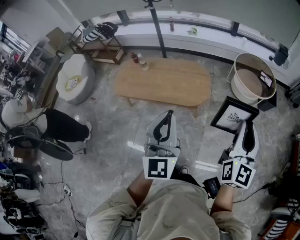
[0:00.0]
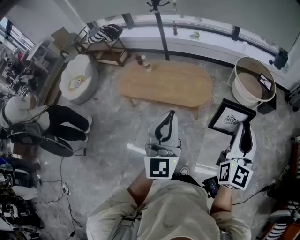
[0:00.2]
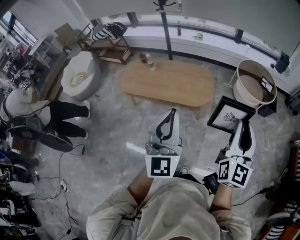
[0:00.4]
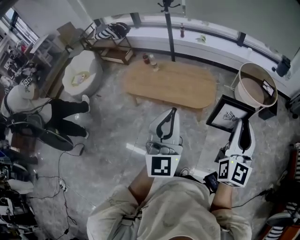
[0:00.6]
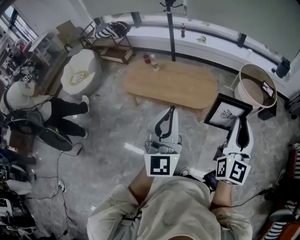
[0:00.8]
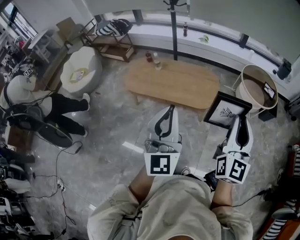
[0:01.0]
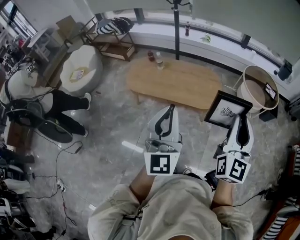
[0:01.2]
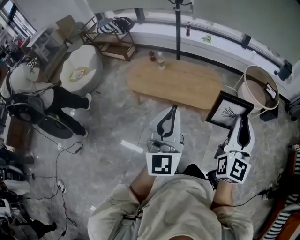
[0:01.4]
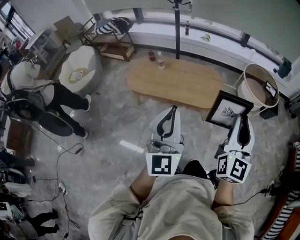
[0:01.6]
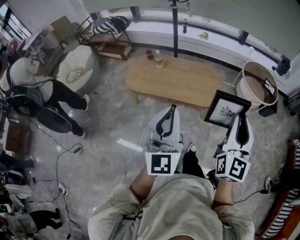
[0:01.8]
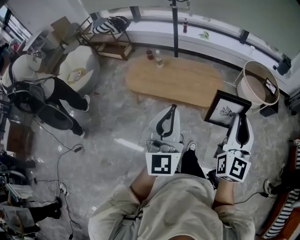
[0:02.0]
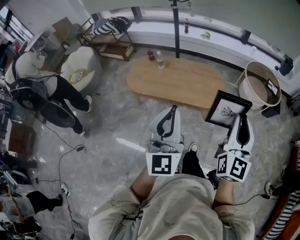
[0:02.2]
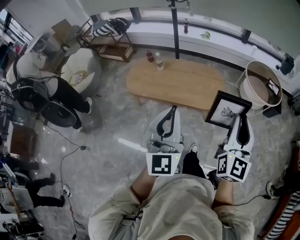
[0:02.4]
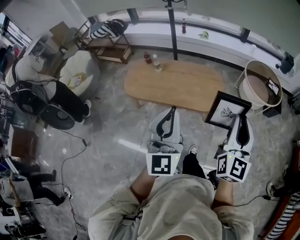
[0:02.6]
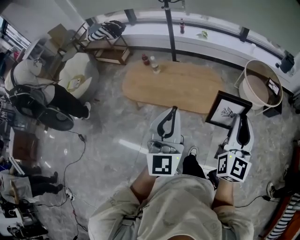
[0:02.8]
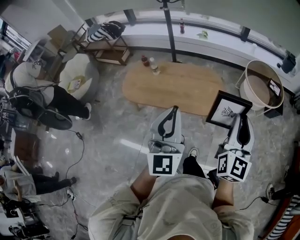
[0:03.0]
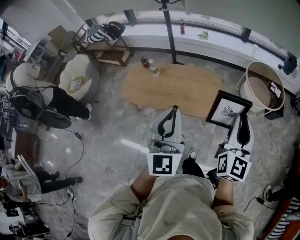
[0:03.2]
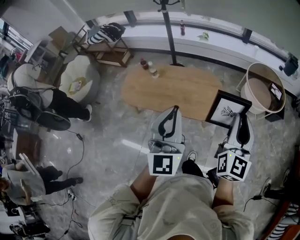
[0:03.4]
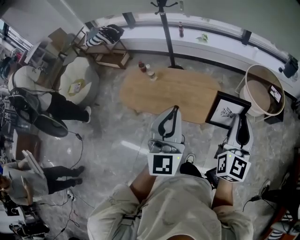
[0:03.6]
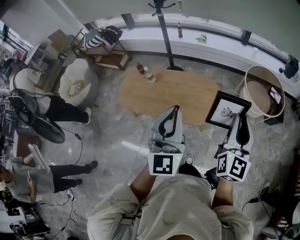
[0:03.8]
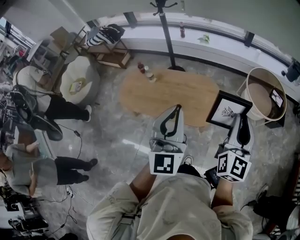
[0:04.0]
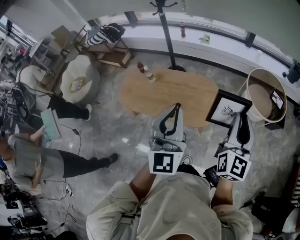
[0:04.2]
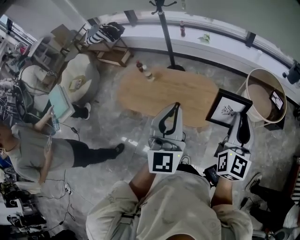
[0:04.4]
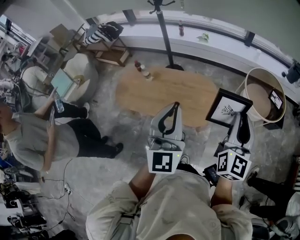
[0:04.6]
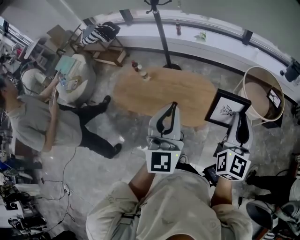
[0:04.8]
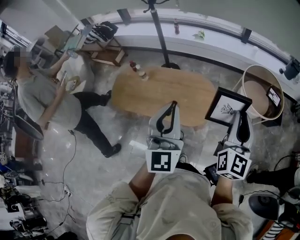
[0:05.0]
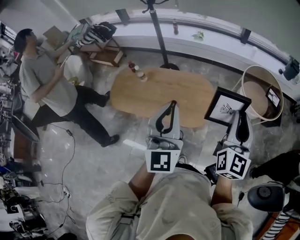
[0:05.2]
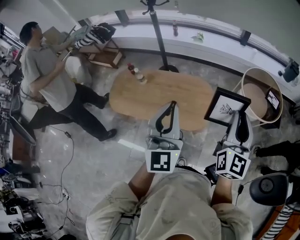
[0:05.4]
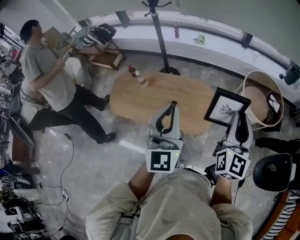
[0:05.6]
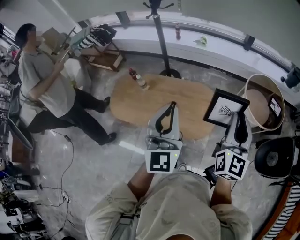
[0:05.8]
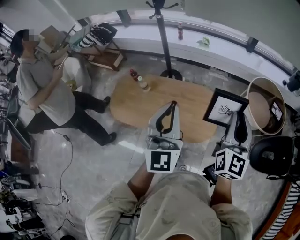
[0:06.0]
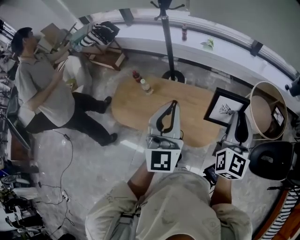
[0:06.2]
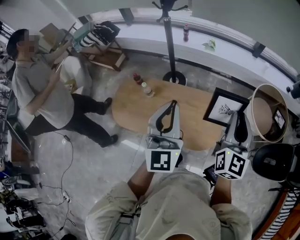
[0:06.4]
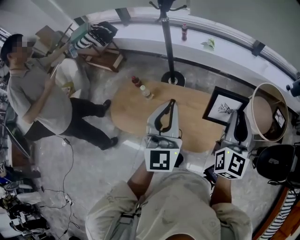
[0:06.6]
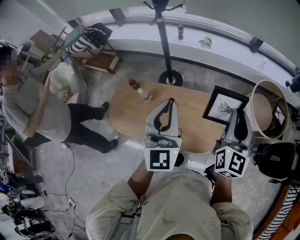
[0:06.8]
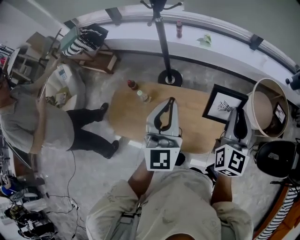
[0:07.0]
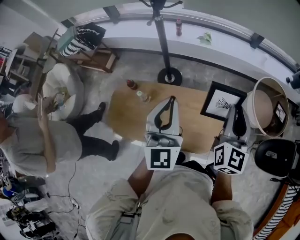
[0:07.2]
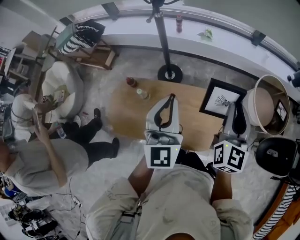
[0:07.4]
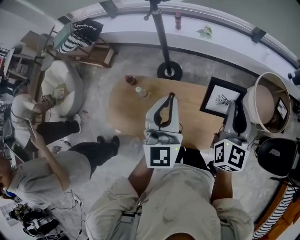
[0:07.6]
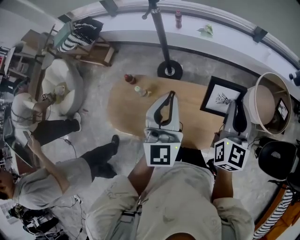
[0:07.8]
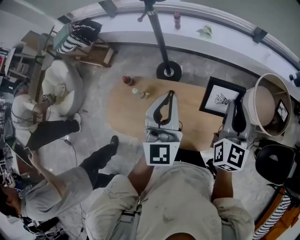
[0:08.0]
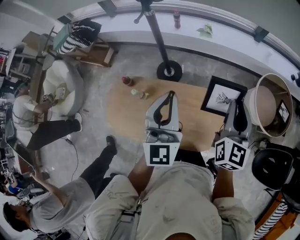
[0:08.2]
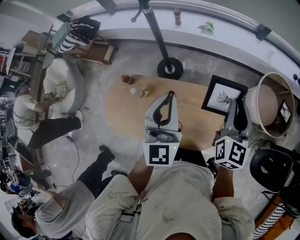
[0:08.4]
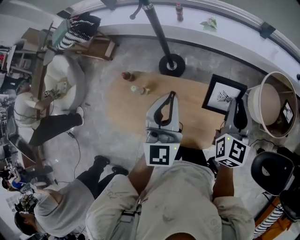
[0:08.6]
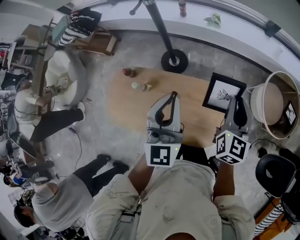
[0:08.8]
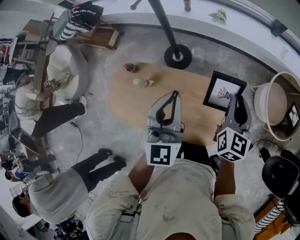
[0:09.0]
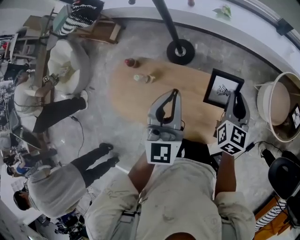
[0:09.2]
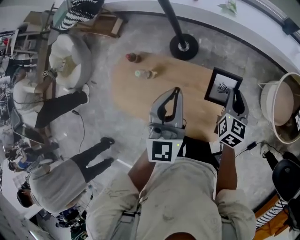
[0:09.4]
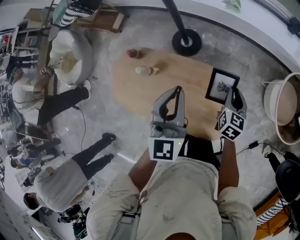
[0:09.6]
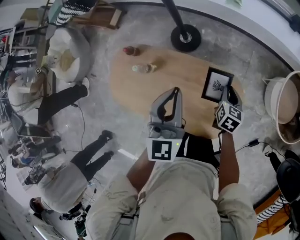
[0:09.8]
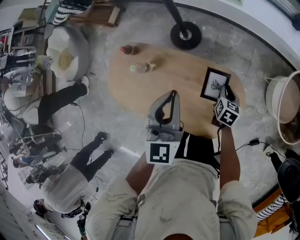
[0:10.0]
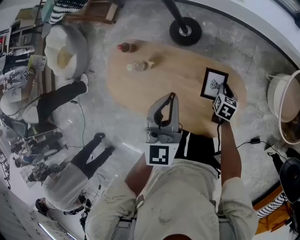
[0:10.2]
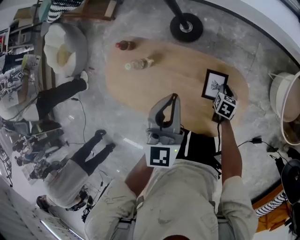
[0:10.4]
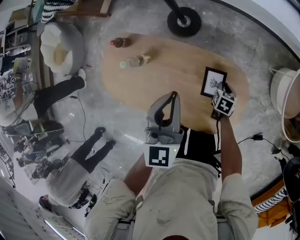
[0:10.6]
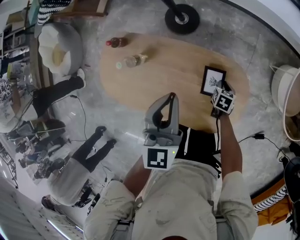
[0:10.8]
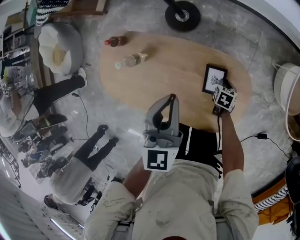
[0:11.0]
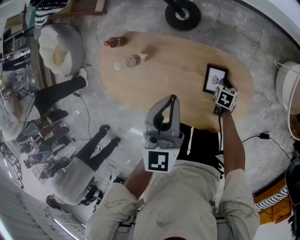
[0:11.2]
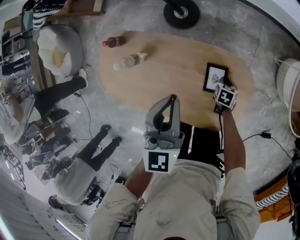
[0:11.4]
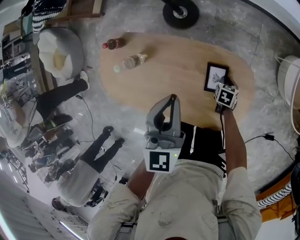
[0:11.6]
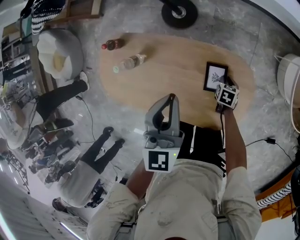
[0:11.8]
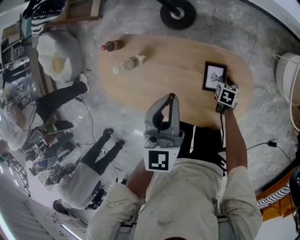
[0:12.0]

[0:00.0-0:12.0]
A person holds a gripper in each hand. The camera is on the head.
0:00.0 to 0:01.6: The grippers both shift to the left by approximately 15 cm.
0:01.6 to 0:03.0: The right gripper is displaced forward by about 10 cm. Meanwhile the left gripper goes roughly 15 cm forward and to the right.
0:03.0 to 0:04.4: Both grippers move forward and to the right, roughly 15 cm.
0:04.4 to 0:06.0: The grippers both shift forward by about 15 cm.
0:06.0 to 0:07.6: The grippers both shift forward and to the left by some 20 cm.
0:07.6 to 0:09.0: The right gripper shifts about 15 cm downward and forward, while the left gripper travels forward and downward by about 10 cm.
0:09.0 to 0:10.4: The right gripper shifts about 40 cm downward, and tips its fingers downward by some 40 degrees; the left gripper goes some 15 cm downward.
0:10.4 to 0:12.0: The right gripper moves downward, about 10 cm.

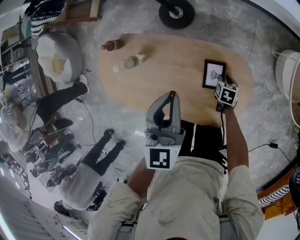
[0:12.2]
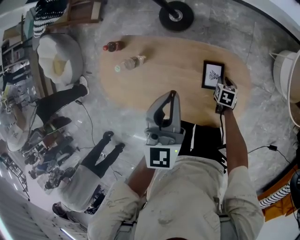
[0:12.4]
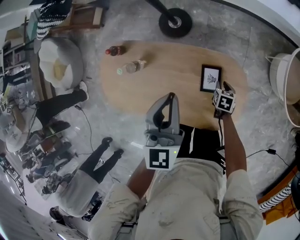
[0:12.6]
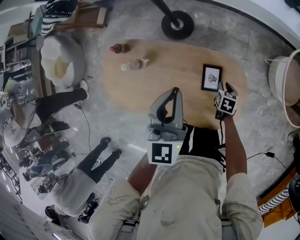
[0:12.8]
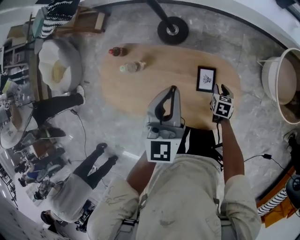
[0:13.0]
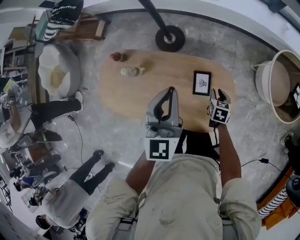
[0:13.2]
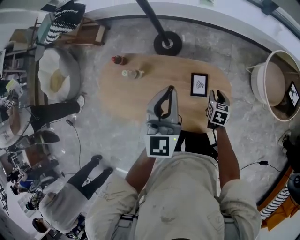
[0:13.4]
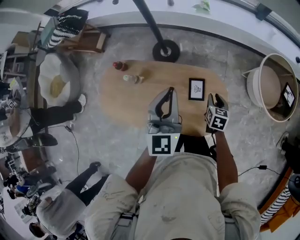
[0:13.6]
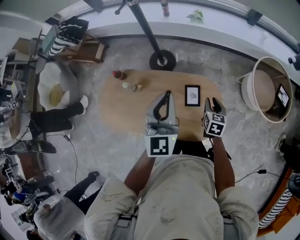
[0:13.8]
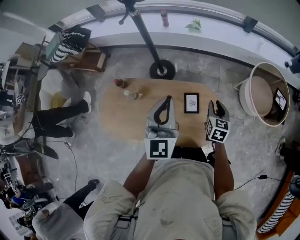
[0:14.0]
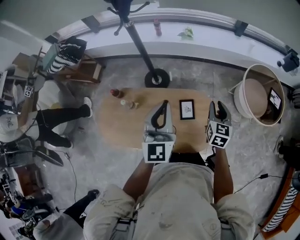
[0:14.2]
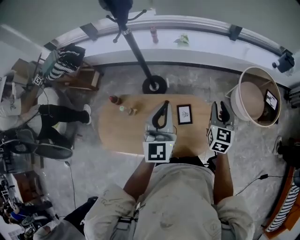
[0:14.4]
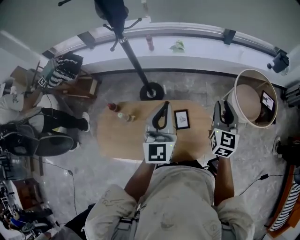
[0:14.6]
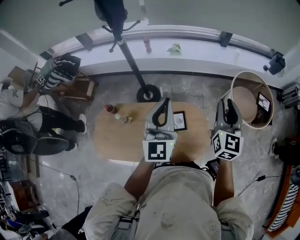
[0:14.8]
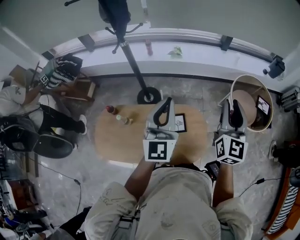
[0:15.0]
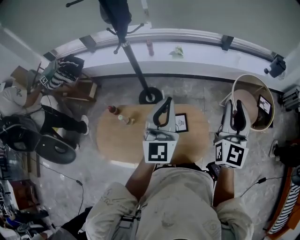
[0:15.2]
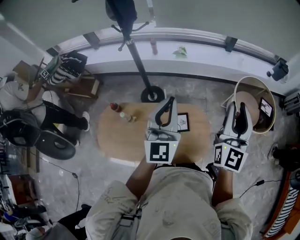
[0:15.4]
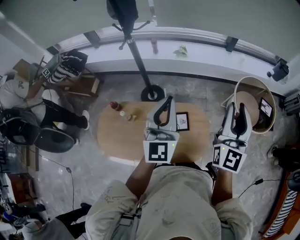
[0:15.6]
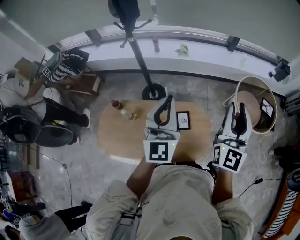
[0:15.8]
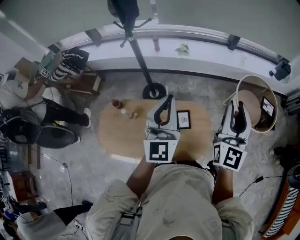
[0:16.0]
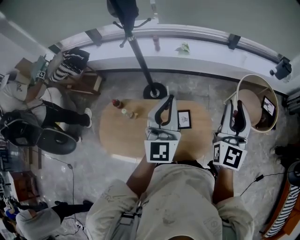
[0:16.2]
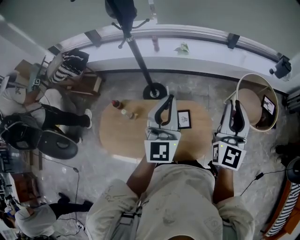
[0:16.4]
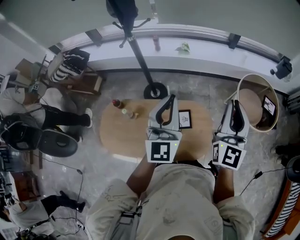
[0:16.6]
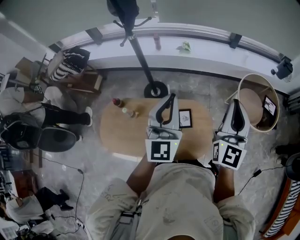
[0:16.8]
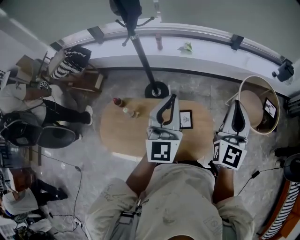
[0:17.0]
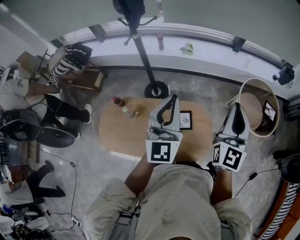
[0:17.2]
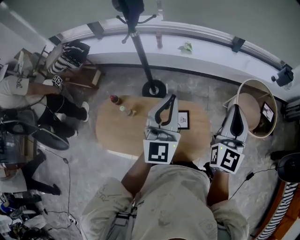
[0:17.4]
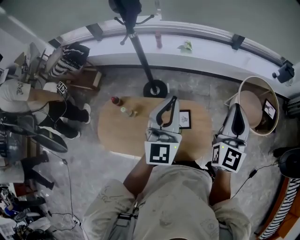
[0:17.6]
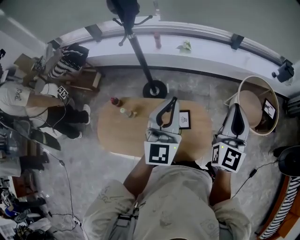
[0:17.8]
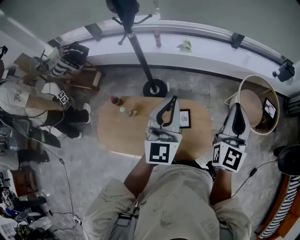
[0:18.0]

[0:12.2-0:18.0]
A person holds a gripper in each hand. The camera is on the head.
0:12.2 to 0:13.6: The left gripper shifts roughly 15 cm upward and backward. The right gripper is displaced upward by approximately 25 cm, and changes its angle by about 20 degrees.
0:13.6 to 0:15.0: The right gripper is displaced upward by some 40 cm, and angles its fingers upward, by about 50 degrees, while the left gripper is displaced upward by roughly 15 cm.
0:15.0 to 0:16.6: The right gripper ends up some 5 cm from where it was.
0:16.6 to 0:18.0: The grippers move only a little.

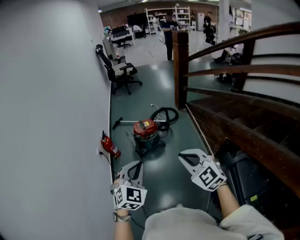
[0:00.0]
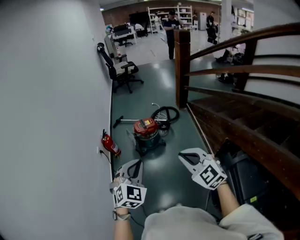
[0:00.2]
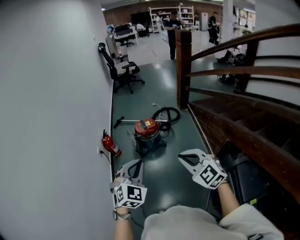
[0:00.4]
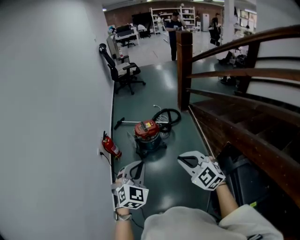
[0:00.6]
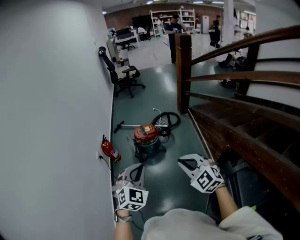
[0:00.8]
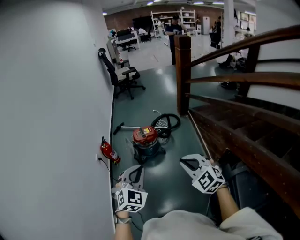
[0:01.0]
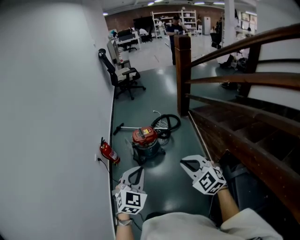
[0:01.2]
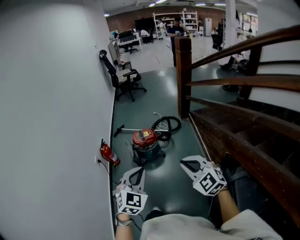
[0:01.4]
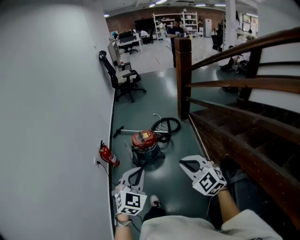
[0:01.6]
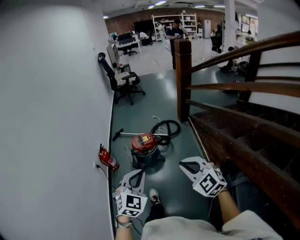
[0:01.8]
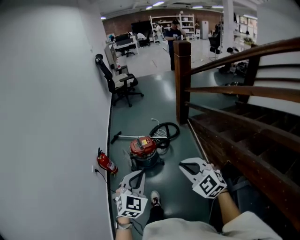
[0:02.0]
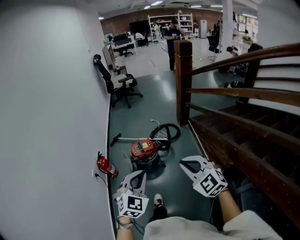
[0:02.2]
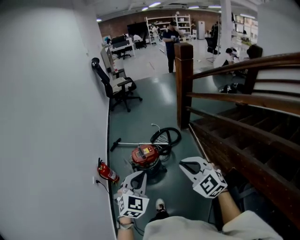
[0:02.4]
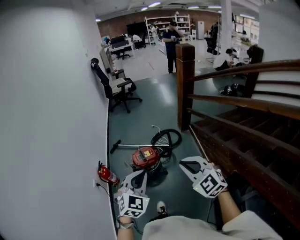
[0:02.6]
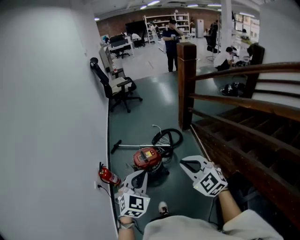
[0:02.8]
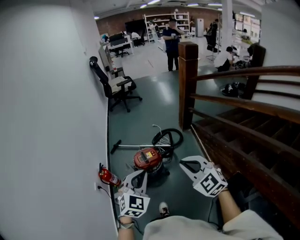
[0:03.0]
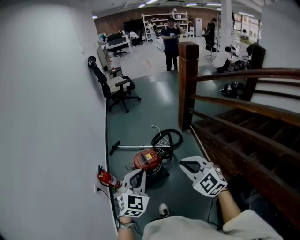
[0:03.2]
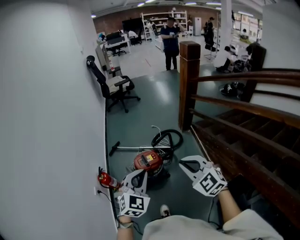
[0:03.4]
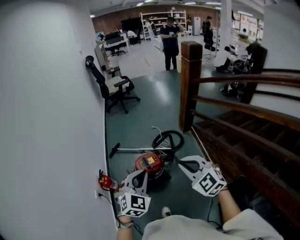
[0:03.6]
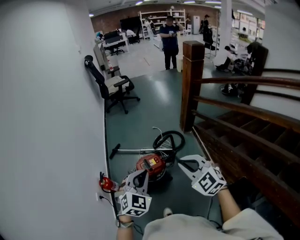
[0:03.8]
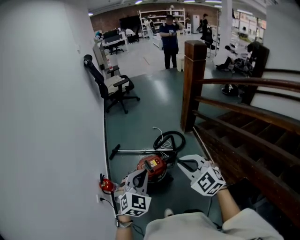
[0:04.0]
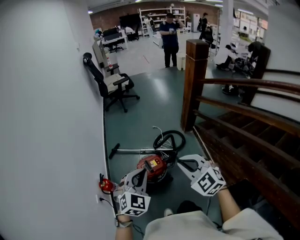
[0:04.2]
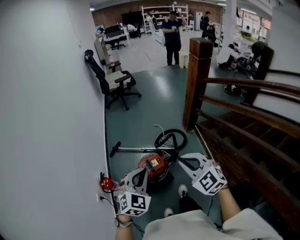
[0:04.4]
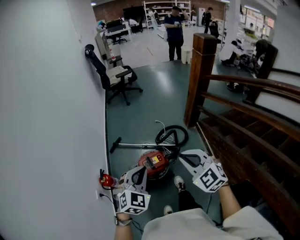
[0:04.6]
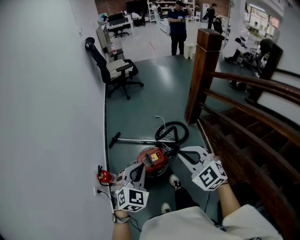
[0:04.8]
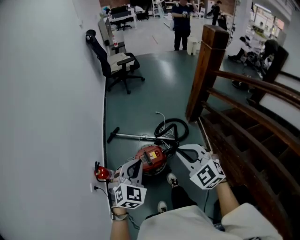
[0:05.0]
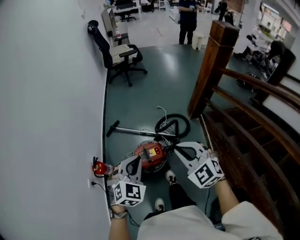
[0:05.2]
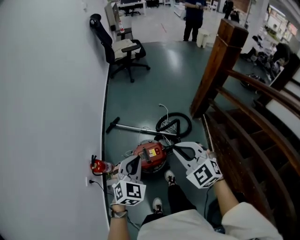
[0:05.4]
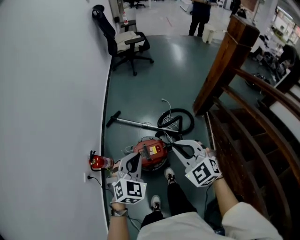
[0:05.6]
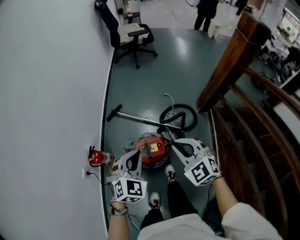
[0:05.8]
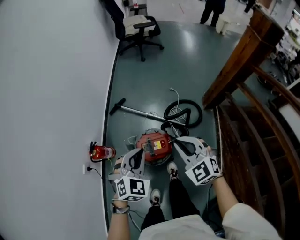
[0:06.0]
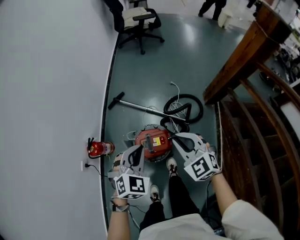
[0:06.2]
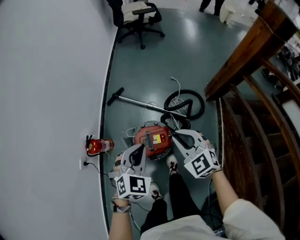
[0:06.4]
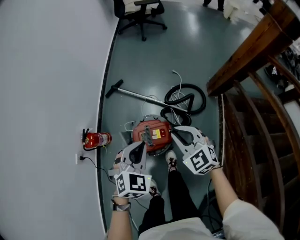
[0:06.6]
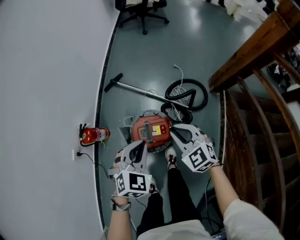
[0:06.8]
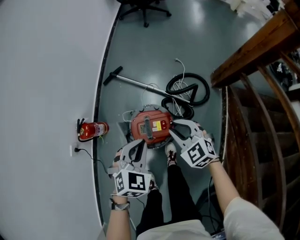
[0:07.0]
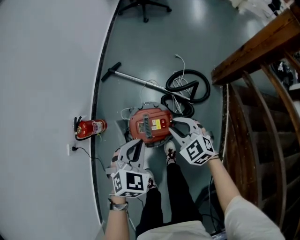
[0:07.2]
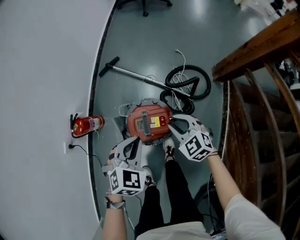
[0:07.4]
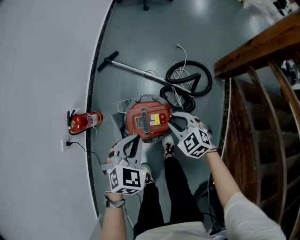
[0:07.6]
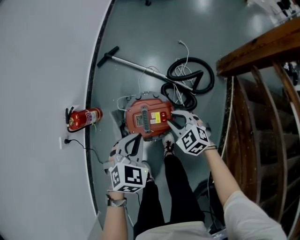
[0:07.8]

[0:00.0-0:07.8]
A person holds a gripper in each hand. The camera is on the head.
0:00.0 to 0:01.6: The grippers both shift to the right and forward by roughly 10 cm.
0:01.6 to 0:03.2: The two grippers go roughly 25 cm forward.
0:03.2 to 0:04.6: The two grippers go some 15 cm forward.
0:04.6 to 0:06.2: Both grippers travel together forward and downward, some 25 cm. The left gripper swivels approximately 20 degrees.
0:06.2 to 0:07.8: The two grippers go roughly 25 cm downward. The left gripper changes its angle by about 20 degrees. The right gripper rotates roughly 20 degrees.
